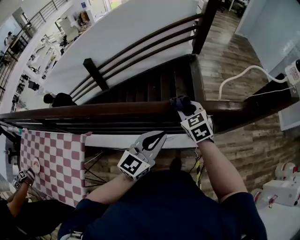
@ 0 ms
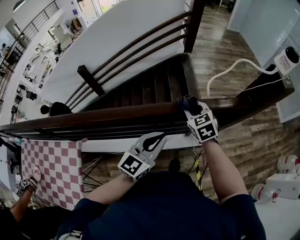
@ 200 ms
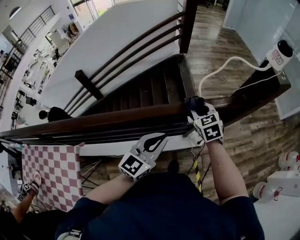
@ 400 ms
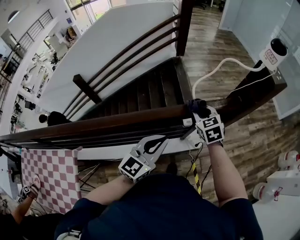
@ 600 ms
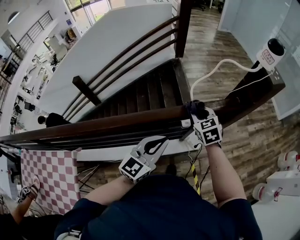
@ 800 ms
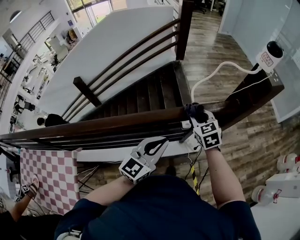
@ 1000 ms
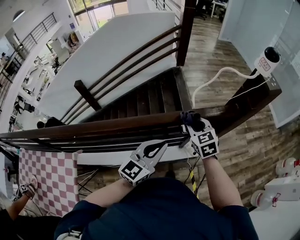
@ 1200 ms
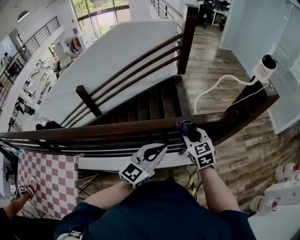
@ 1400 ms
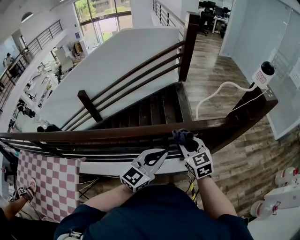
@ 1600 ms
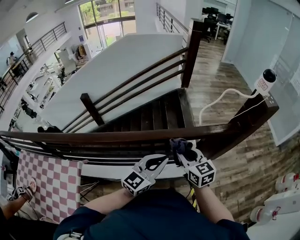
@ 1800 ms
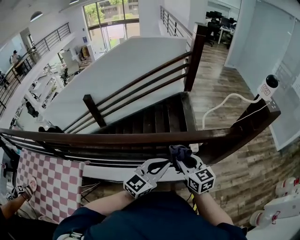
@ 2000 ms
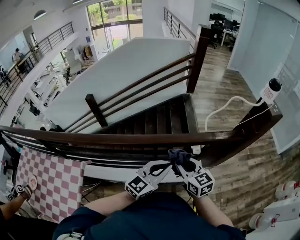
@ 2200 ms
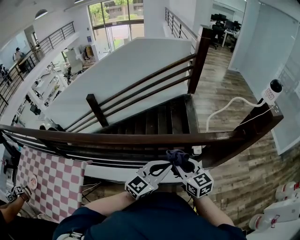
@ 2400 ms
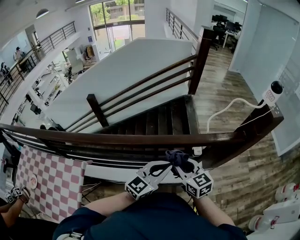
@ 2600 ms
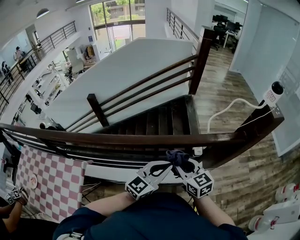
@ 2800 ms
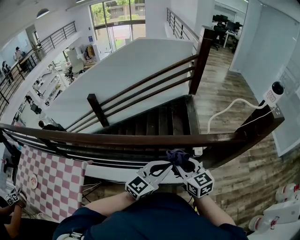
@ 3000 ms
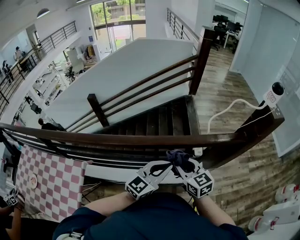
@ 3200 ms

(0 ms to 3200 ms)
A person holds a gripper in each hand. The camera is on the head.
0 ms - 1600 ms: The left gripper goes about 10 cm to the right, while the right gripper shifts roughly 15 cm to the right and backward.
1600 ms - 3200 ms: The right gripper heads to the left and backward, covering some 10 cm.

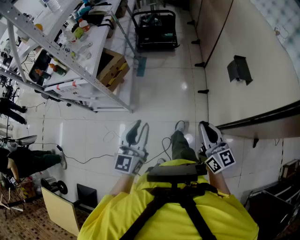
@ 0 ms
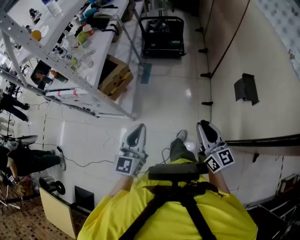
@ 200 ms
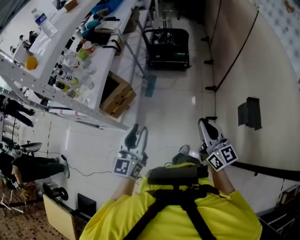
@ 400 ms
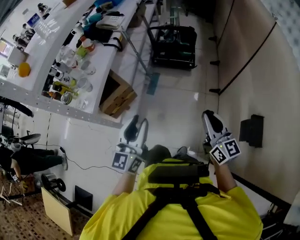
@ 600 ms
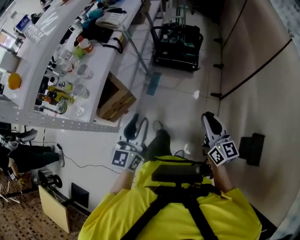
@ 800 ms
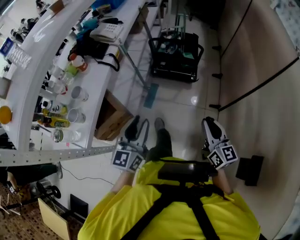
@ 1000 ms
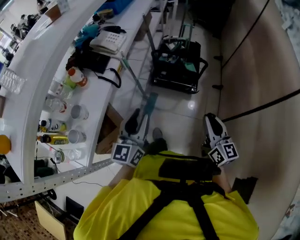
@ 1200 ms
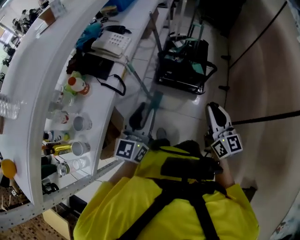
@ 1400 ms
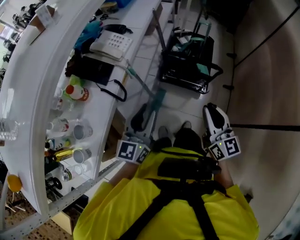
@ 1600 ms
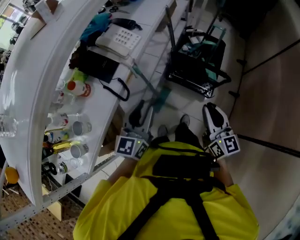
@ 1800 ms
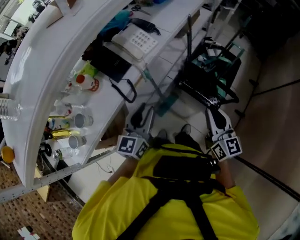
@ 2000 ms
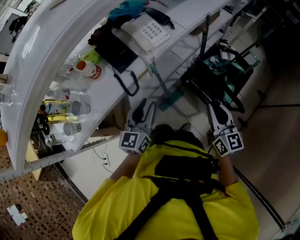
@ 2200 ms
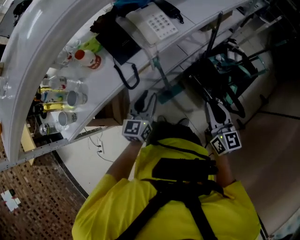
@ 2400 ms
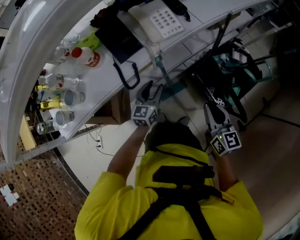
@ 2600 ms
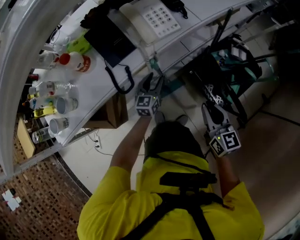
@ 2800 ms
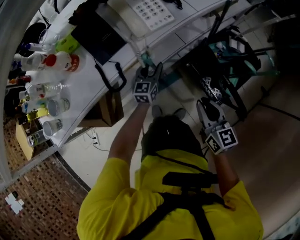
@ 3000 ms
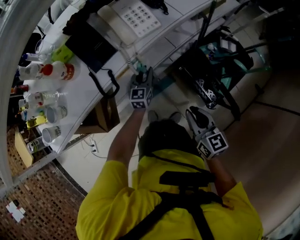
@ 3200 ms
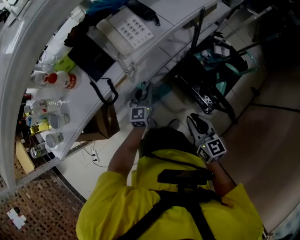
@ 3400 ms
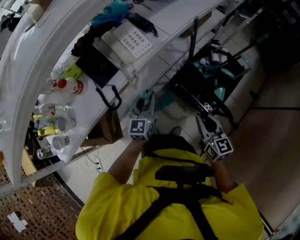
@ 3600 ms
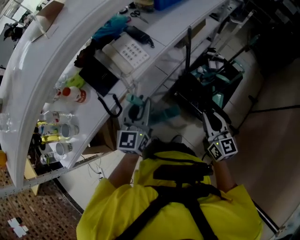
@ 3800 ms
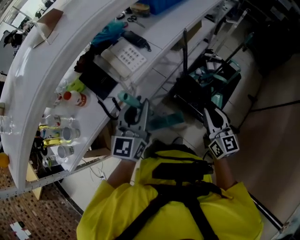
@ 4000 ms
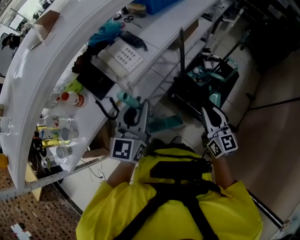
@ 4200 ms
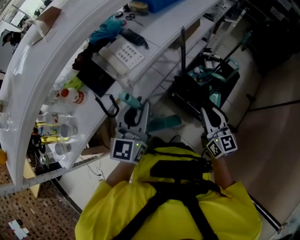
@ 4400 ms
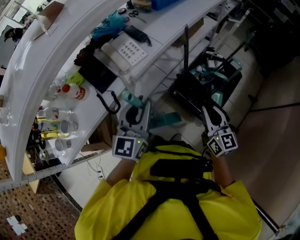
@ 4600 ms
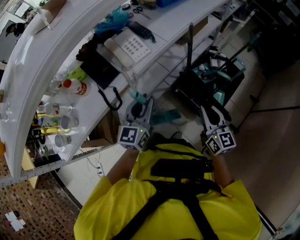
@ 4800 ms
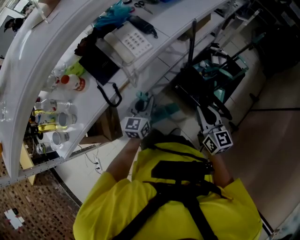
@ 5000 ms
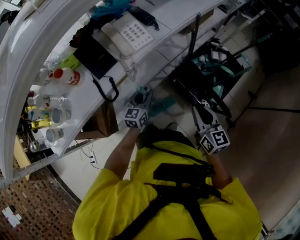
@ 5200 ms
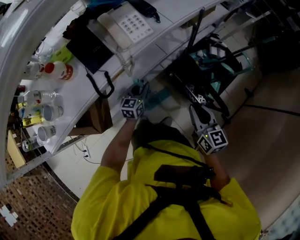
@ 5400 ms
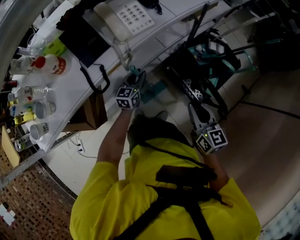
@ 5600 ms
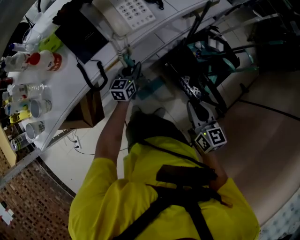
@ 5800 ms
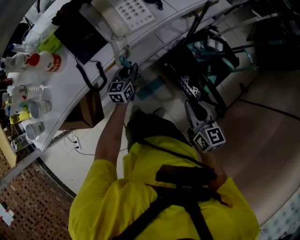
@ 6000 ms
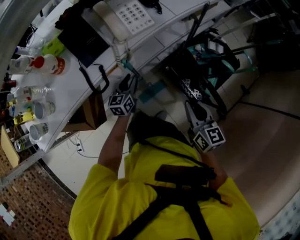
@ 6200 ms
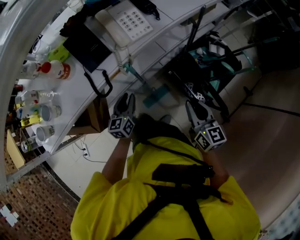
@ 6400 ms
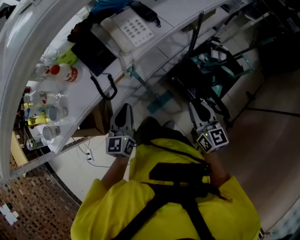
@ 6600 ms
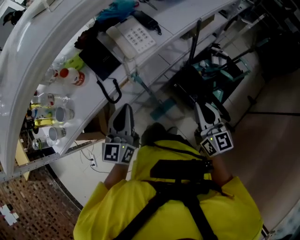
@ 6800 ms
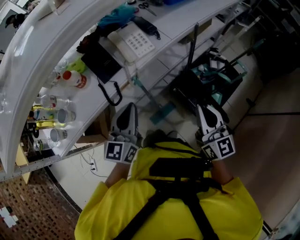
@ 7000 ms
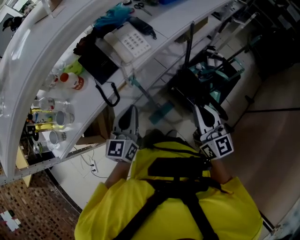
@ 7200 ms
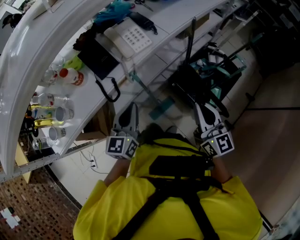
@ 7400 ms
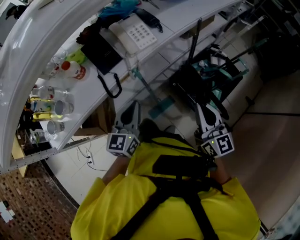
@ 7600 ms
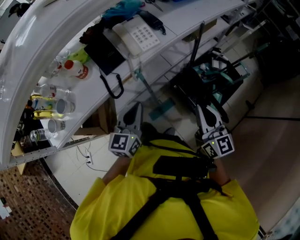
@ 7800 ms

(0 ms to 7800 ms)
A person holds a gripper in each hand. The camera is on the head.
0 ms - 1600 ms: The pair of grippers is taken forward, roughly 80 cm. The left gripper closes, then opens again.
1600 ms - 3200 ms: The right gripper ends up about 25 cm from where it was, and swivels approximately 50 degrees, while the left gripper is displaced downward by some 30 cm, and swivels some 40 degrees.
3200 ms - 4600 ms: The left gripper heads upward and backward, covering some 35 cm, and turns by some 20 degrees; the right gripper travels upward and to the right by roughly 15 cm, and swivels some 20 degrees.
4600 ms - 6200 ms: The left gripper moves downward, roughly 35 cm, and turns by approximately 30 degrees; the right gripper shifts roughly 15 cm downward and to the left.
6200 ms - 7800 ms: The right gripper goes roughly 15 cm upward, and swivels about 20 degrees, while the left gripper moves upward and backward, about 25 cm, and closes up.

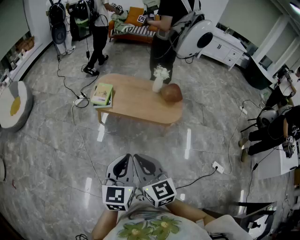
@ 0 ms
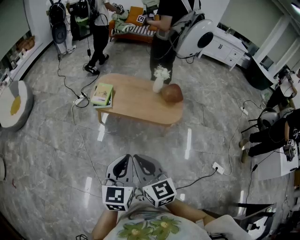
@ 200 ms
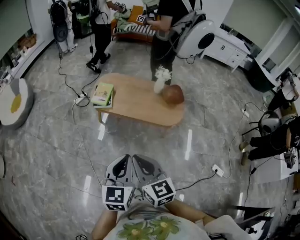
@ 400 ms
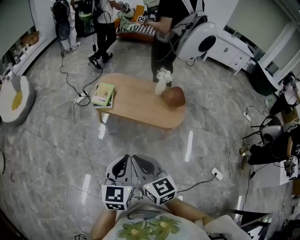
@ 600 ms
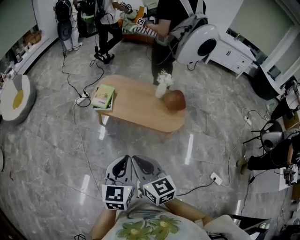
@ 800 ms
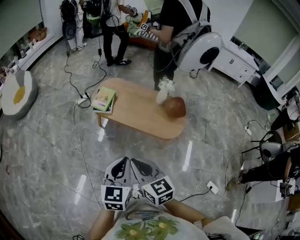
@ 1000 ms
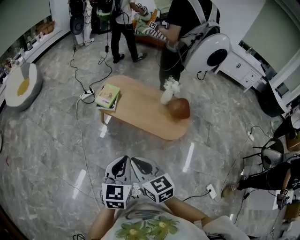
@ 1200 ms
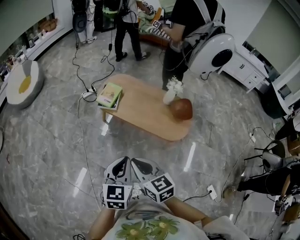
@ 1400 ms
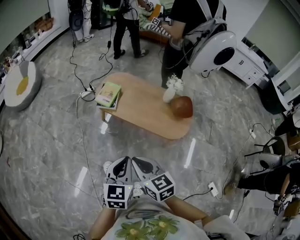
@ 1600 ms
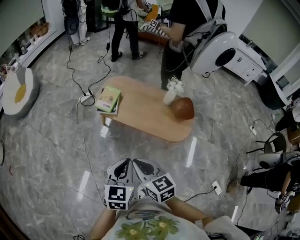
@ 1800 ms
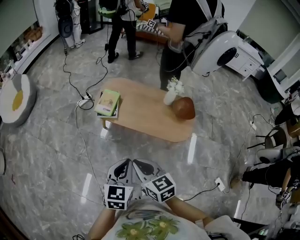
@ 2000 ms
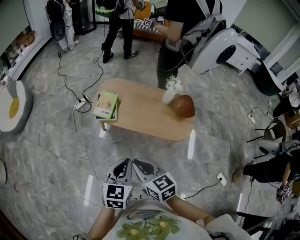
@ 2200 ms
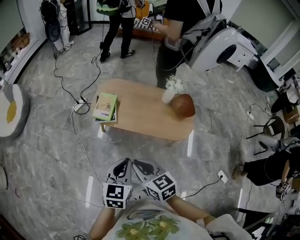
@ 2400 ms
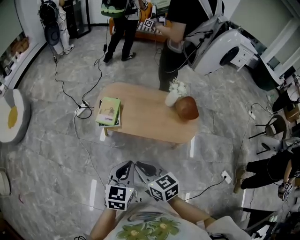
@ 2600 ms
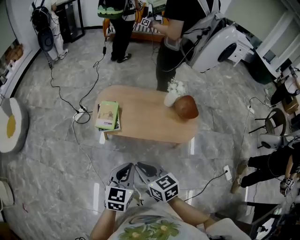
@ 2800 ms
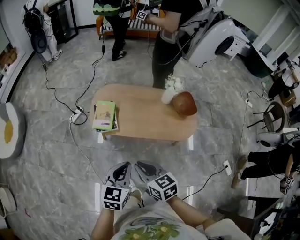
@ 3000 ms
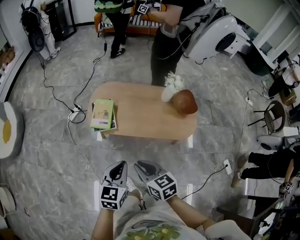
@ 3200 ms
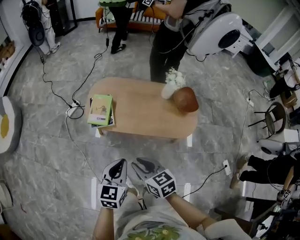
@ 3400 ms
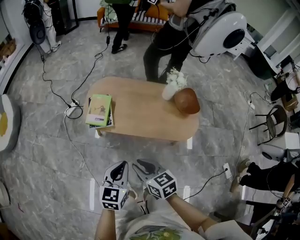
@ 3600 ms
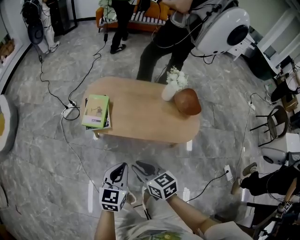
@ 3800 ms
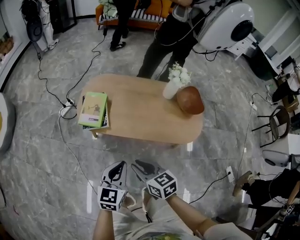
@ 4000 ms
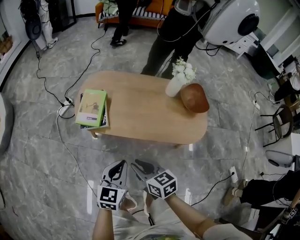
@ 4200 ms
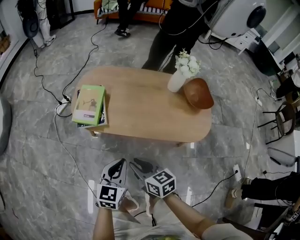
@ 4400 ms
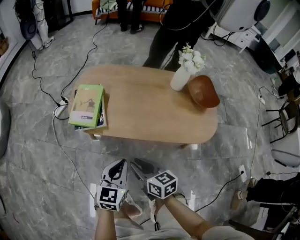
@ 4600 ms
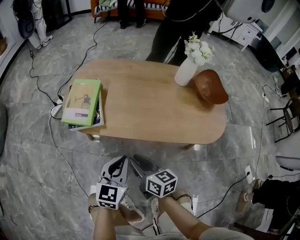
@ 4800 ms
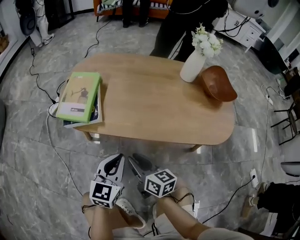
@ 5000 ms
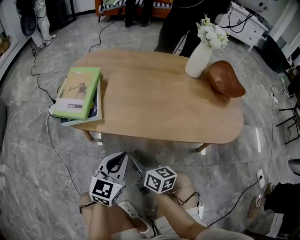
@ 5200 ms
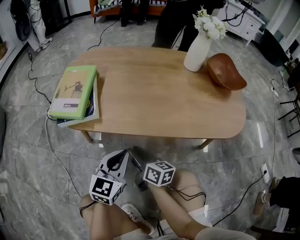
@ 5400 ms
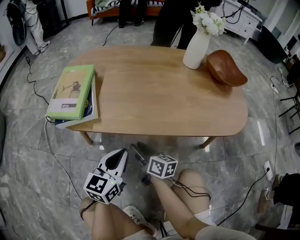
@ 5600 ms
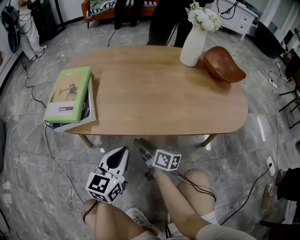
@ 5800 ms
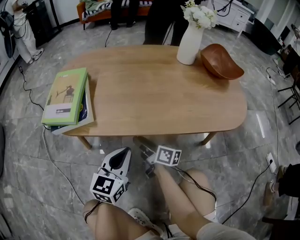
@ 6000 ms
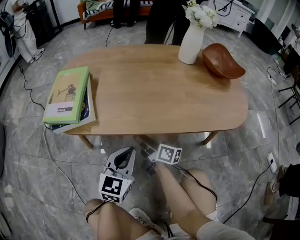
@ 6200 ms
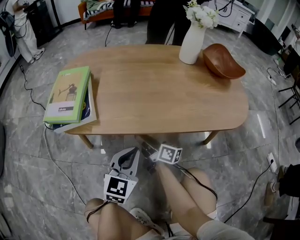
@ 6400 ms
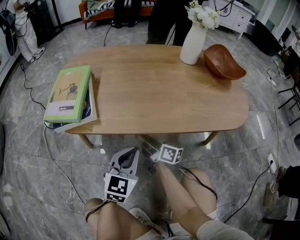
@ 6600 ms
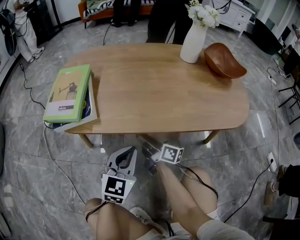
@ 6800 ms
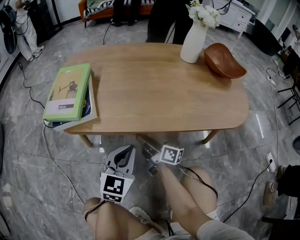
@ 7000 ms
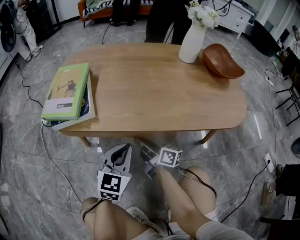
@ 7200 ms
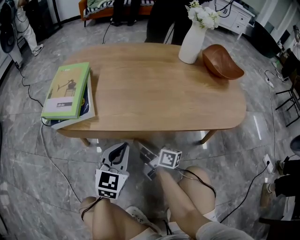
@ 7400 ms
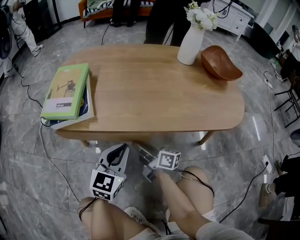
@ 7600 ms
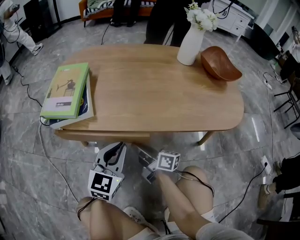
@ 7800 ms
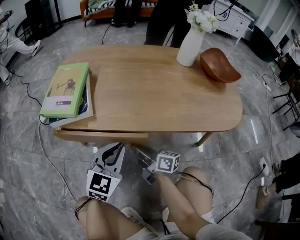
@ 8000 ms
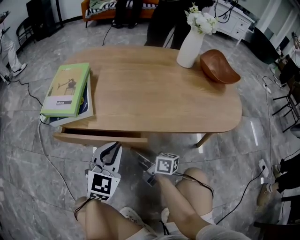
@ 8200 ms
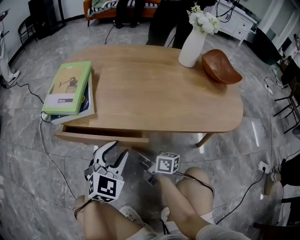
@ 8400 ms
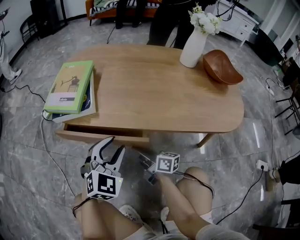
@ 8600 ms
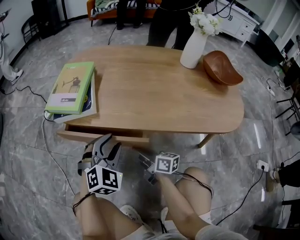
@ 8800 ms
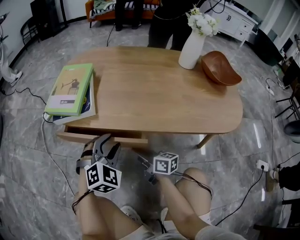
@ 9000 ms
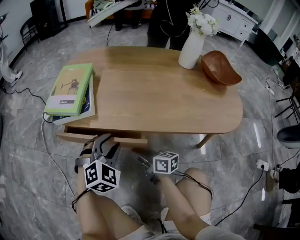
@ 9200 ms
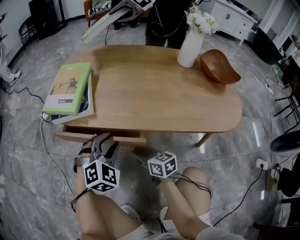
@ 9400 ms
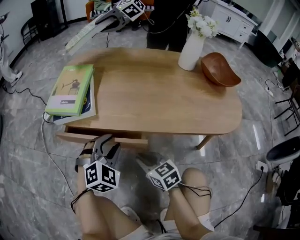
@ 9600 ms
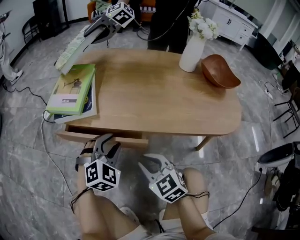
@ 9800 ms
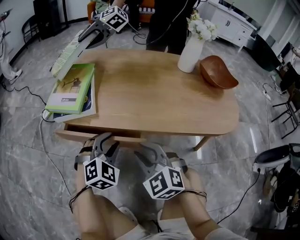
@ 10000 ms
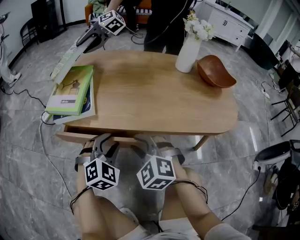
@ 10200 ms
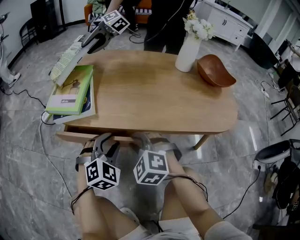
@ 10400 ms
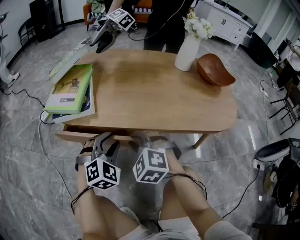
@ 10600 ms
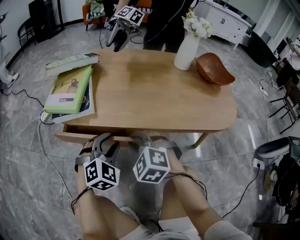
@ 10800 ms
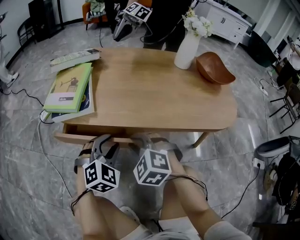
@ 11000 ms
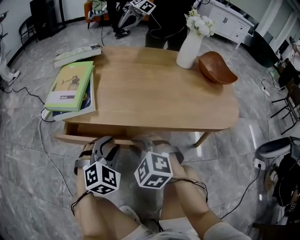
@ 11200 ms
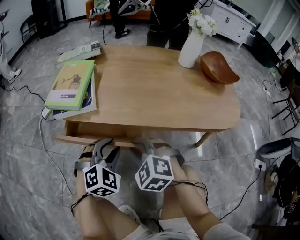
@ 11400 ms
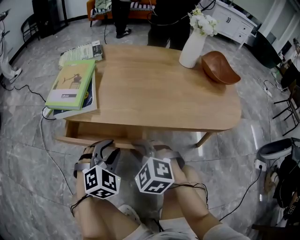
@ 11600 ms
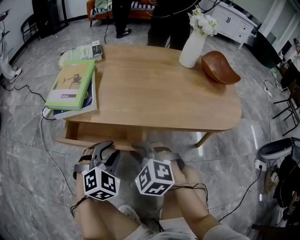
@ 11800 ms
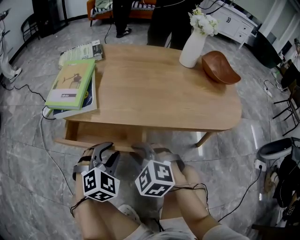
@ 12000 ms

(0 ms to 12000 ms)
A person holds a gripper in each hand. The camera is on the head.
0 ms - 1600 ms: The two grippers go roughly 15 cm forward, downward and to the right. The right gripper rotates approximately 20 degrees.
1600 ms - 3000 ms: The right gripper moves forward, to the left and downward, some 20 cm. The left gripper travels forward and to the left by about 20 cm, and changes its angle by about 20 degrees.
3000 ms - 4400 ms: Both grippers move downward, some 25 cm.
4400 ms - 6000 ms: The right gripper goes approximately 35 cm downward and forward, and turns by roughly 40 degrees. Meanwhile the left gripper travels downward by some 25 cm.
6000 ms - 7600 ms: The grippers move only a little.
7600 ms - 9000 ms: The left gripper swivels approximately 40 degrees, and opens.
9000 ms - 10400 ms: The right gripper moves upward, some 10 cm, and twists roughly 90 degrees counterclockwise, seen from behind.
10400 ms - 12000 ms: The grippers move only a little.
